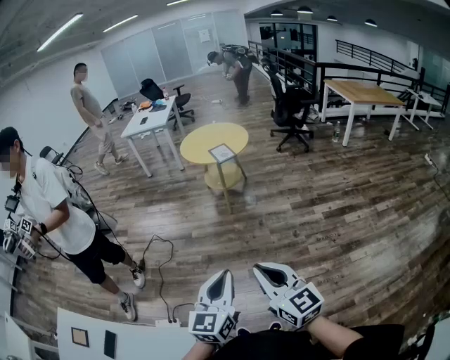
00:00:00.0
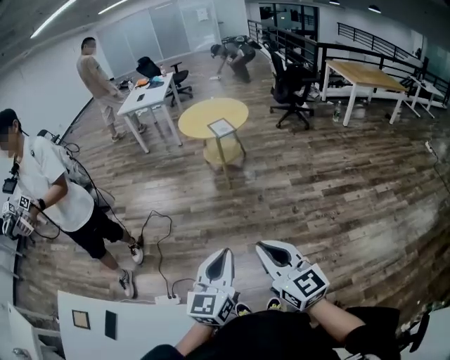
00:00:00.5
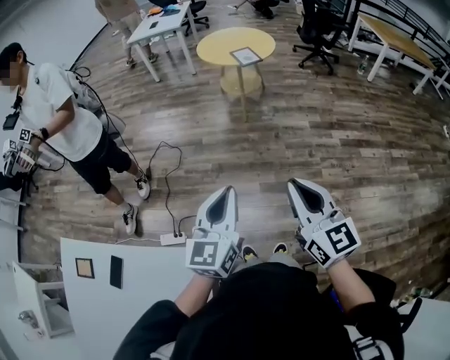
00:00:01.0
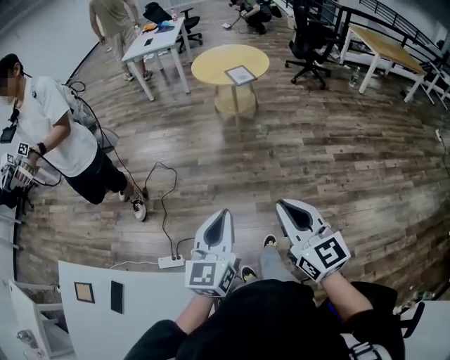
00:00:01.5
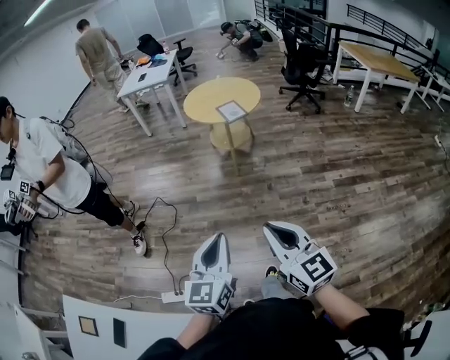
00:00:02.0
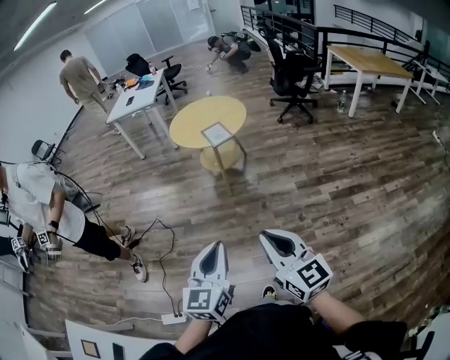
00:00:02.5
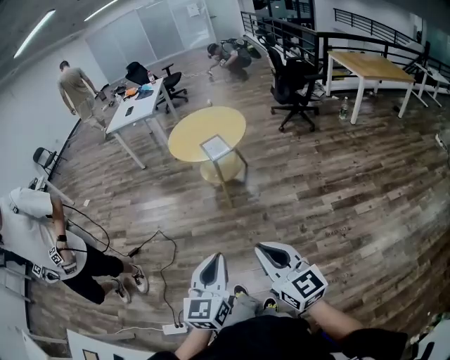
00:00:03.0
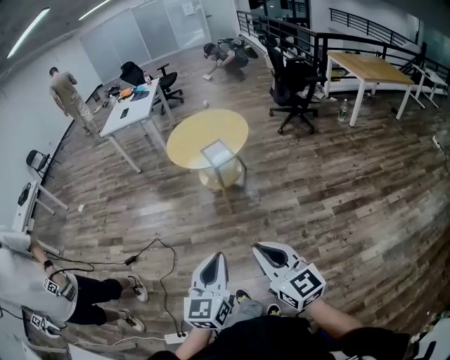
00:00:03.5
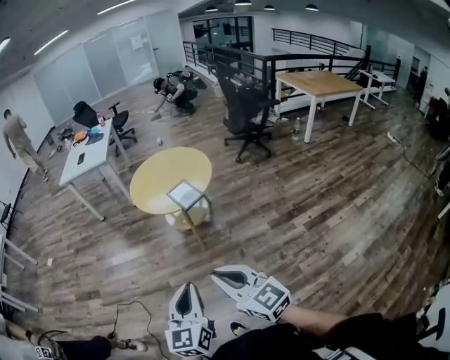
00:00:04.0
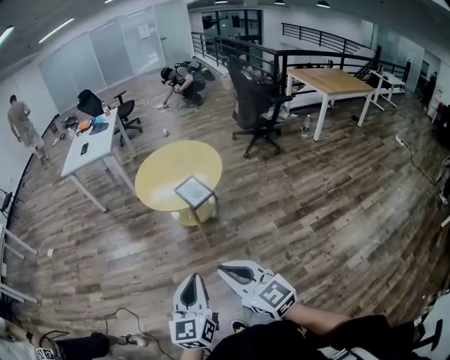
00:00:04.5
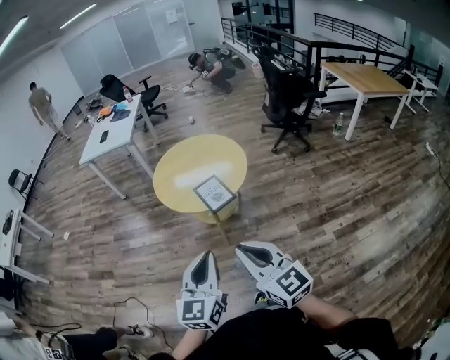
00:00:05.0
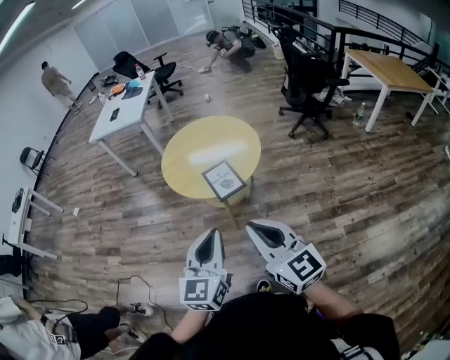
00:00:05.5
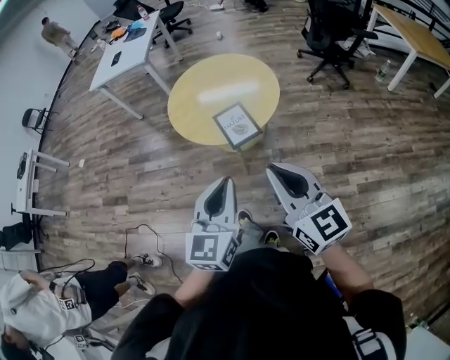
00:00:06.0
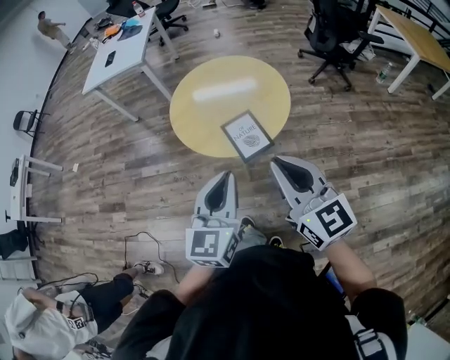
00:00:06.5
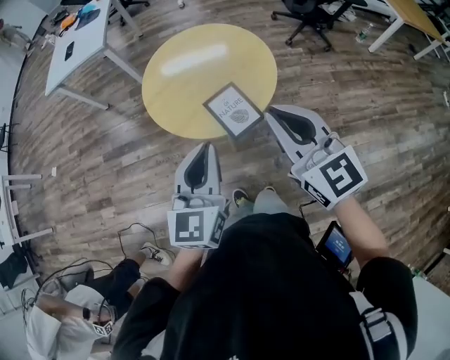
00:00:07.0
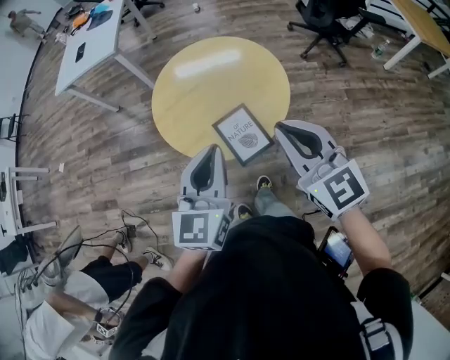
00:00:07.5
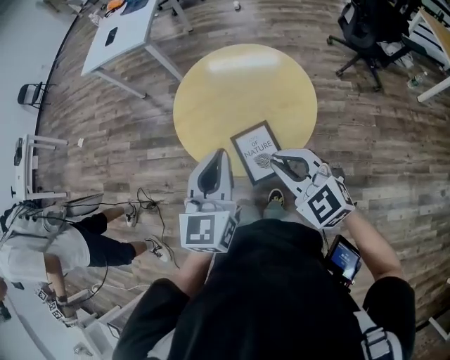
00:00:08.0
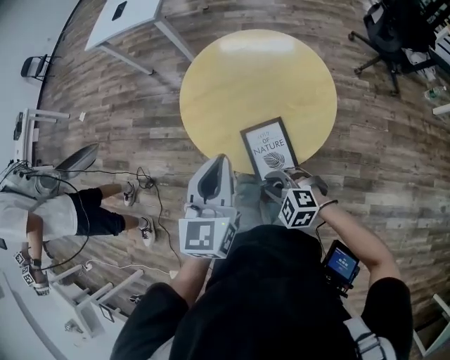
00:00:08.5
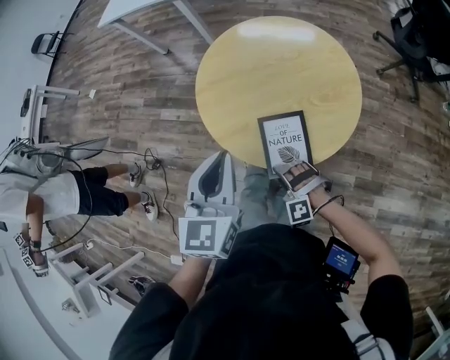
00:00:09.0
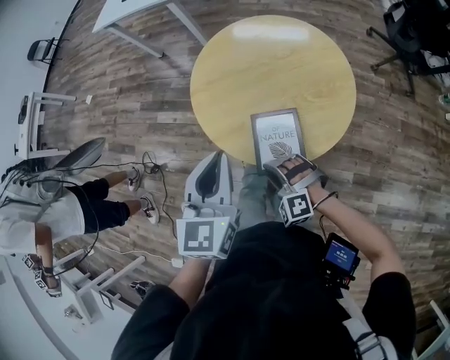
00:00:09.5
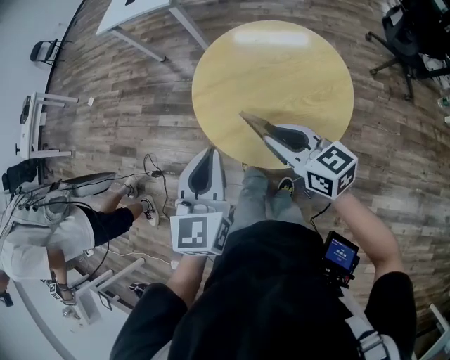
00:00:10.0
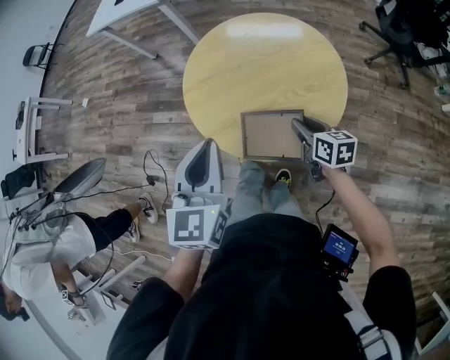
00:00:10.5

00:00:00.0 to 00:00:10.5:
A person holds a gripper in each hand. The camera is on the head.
00:00:00.0 to 00:00:02.0: The left gripper goes roughly 15 cm forward and to the left. The right gripper goes about 15 cm forward.
00:00:02.0 to 00:00:04.0: The two grippers go approximately 30 cm forward.
00:00:04.0 to 00:00:06.5: The two grippers travel together, forward, some 40 cm.
00:00:06.5 to 00:00:08.5: The left gripper changes place by some 25 cm; the right gripper goes approximately 35 cm downward, and tilts its fingers about 50 degrees downward.
00:00:08.5 to 00:00:10.5: The right gripper goes up and down, approximately 25 cm each way, reversing 2 times, rolls clockwise, seen from behind, by roughly 70 degrees, and opens, then closes once more.

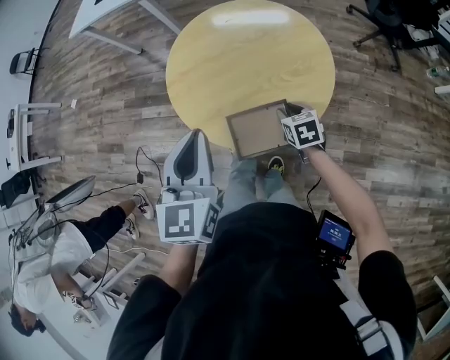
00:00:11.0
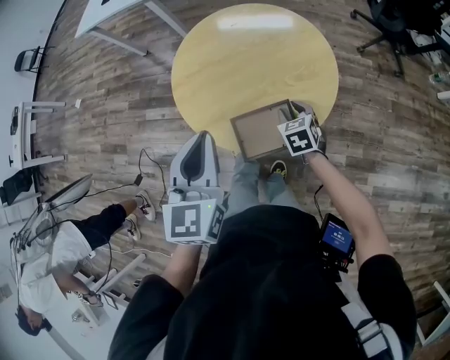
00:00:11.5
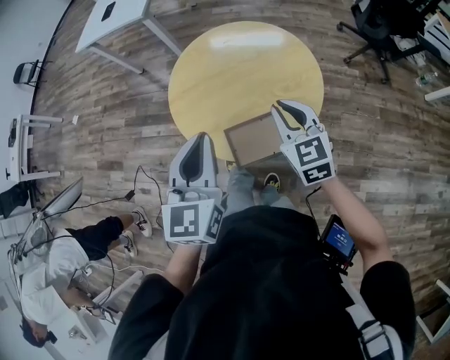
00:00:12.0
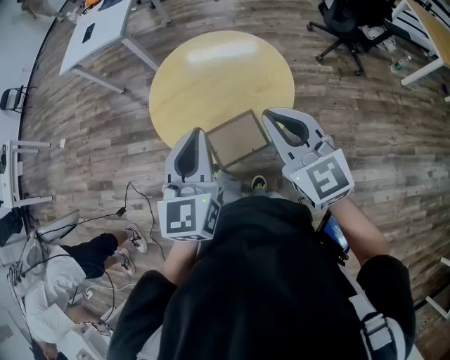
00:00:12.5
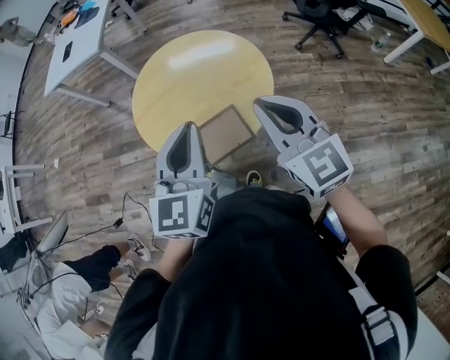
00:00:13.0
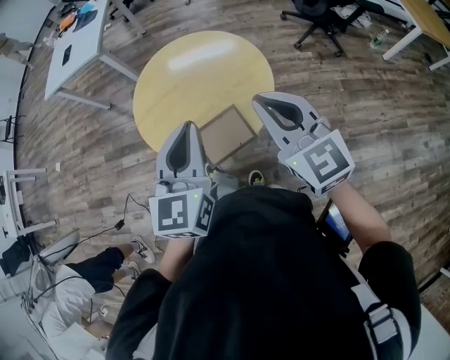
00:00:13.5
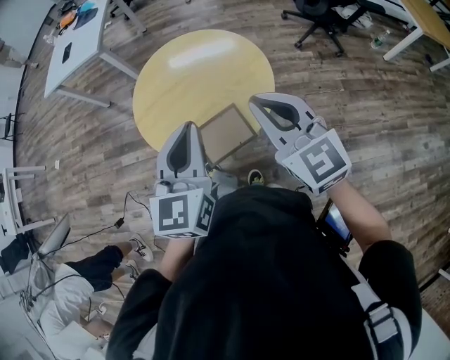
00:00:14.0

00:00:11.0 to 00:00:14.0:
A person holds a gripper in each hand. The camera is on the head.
00:00:11.0 to 00:00:12.5: The right gripper shifts about 35 cm upward, tilts its fingers some 40 degrees upward, and closes its fingers, while the left gripper moves upward and to the right, approximately 10 cm.
00:00:12.5 to 00:00:14.0: There are only small adjustments of the grippers.

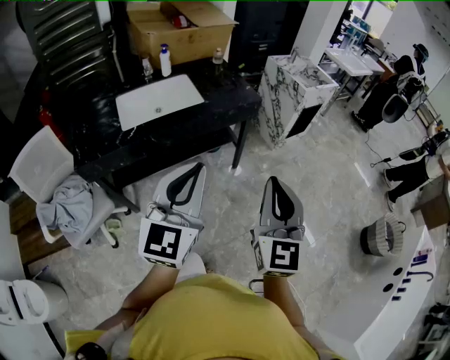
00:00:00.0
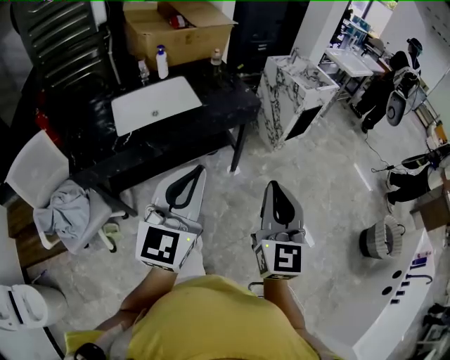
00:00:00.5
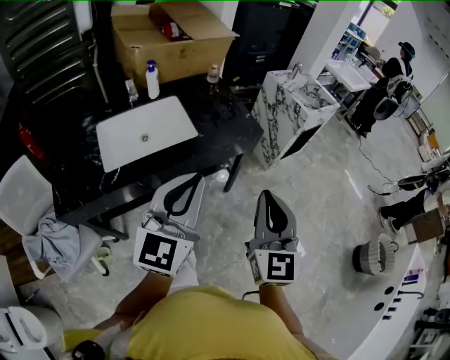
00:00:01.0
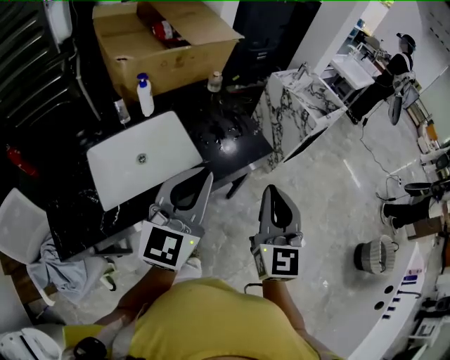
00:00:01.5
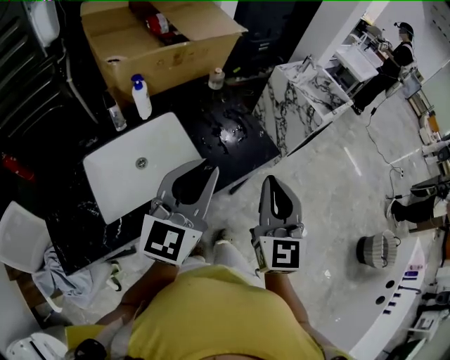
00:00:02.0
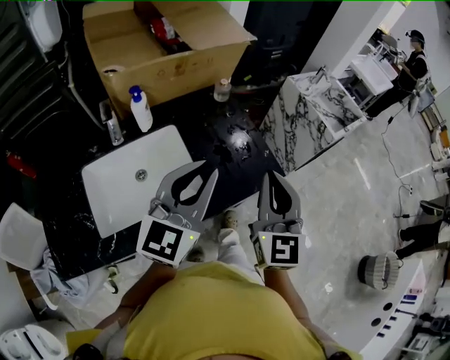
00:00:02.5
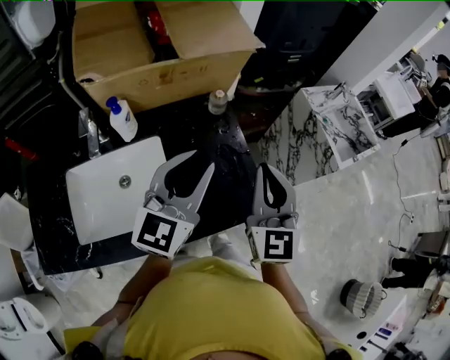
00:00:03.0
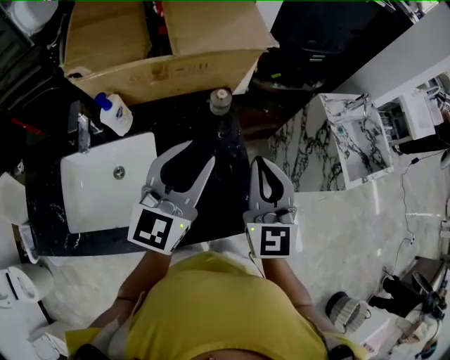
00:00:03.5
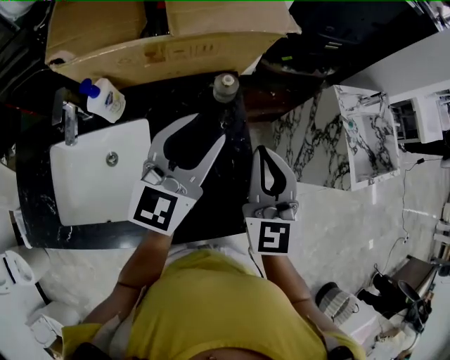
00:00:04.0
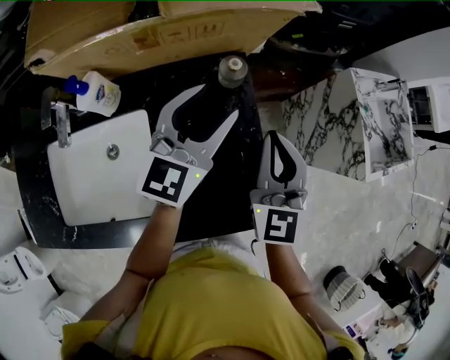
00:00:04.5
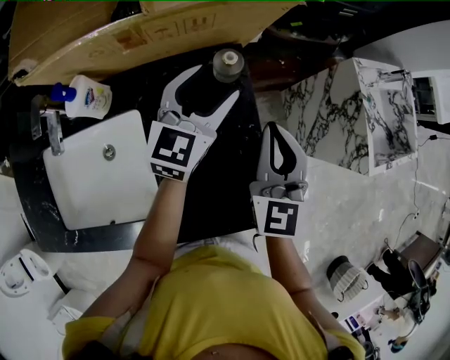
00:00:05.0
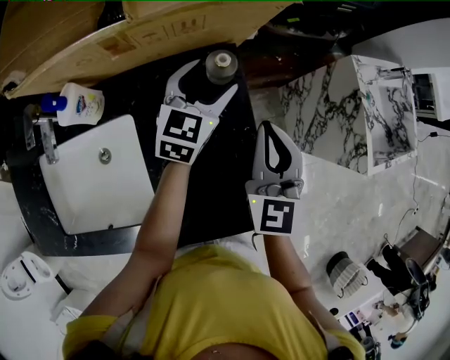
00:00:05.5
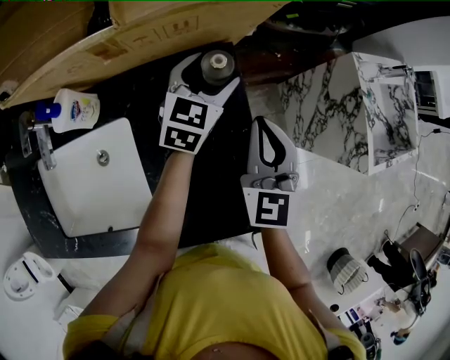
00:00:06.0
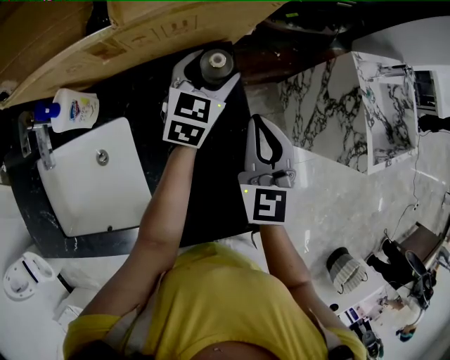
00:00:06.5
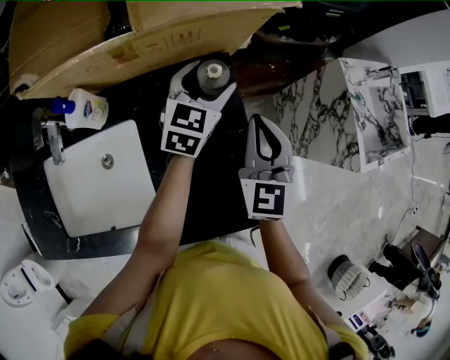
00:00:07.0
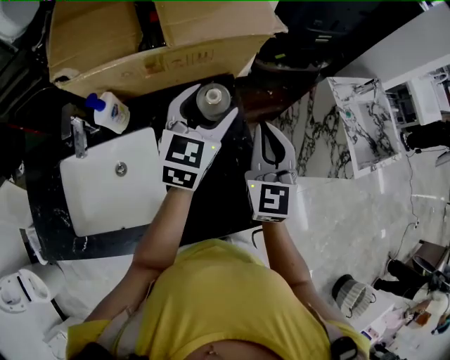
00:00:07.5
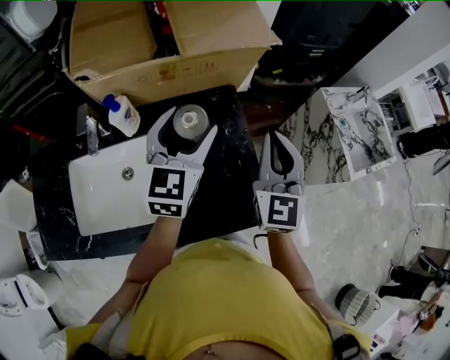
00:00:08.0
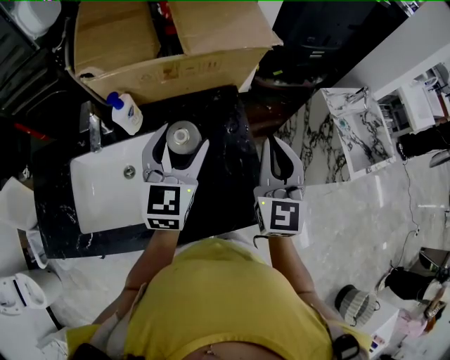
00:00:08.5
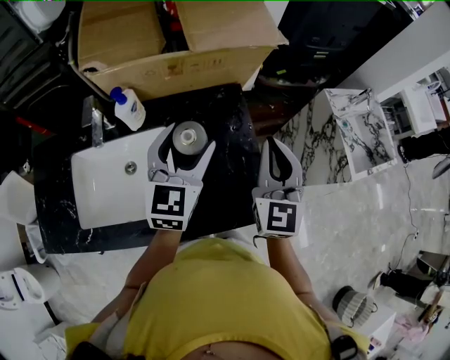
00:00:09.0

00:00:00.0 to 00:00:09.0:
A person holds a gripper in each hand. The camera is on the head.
00:00:00.0 to 00:00:02.0: Both grippers are carried forward, about 40 cm.
00:00:02.0 to 00:00:04.5: The pair of grippers is taken forward, about 40 cm. The right gripper turns by approximately 20 degrees. The left gripper changes its angle by some 20 degrees, and opens up.
00:00:04.5 to 00:00:07.0: The left gripper moves forward and downward, some 15 cm.
00:00:07.0 to 00:00:09.0: The left gripper heads backward, upward and to the left, covering about 25 cm, while the right gripper goes some 15 cm upward and backward.

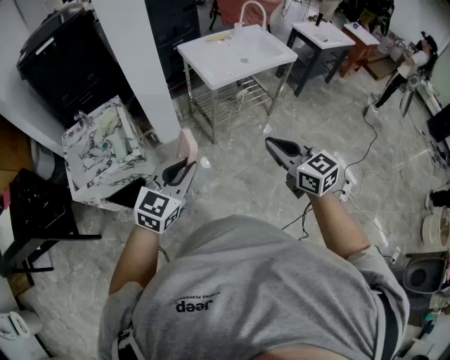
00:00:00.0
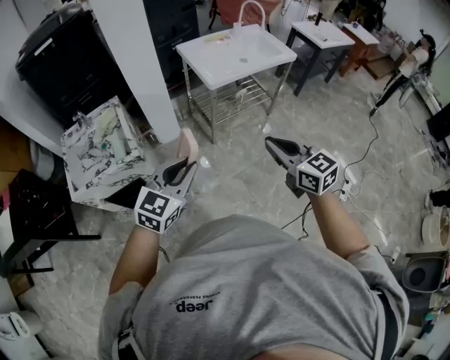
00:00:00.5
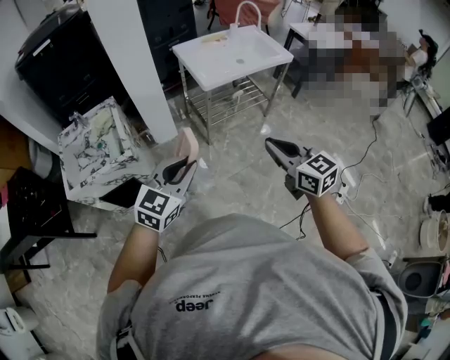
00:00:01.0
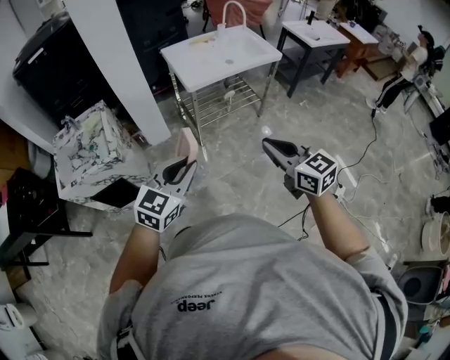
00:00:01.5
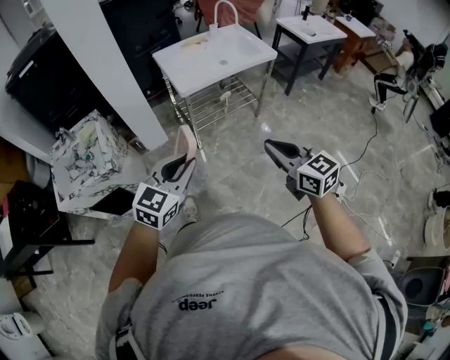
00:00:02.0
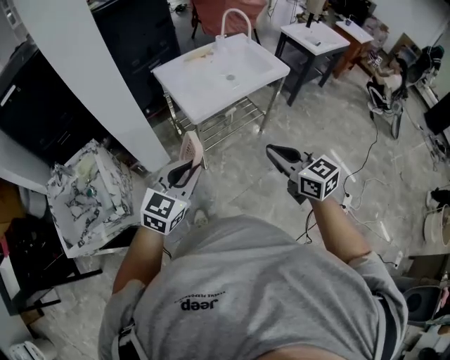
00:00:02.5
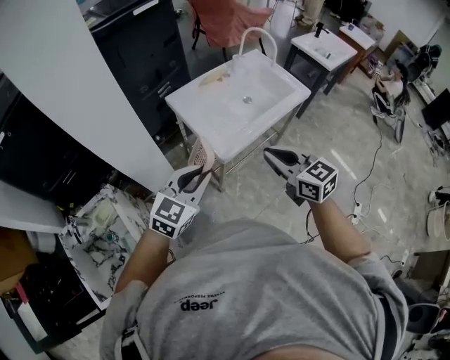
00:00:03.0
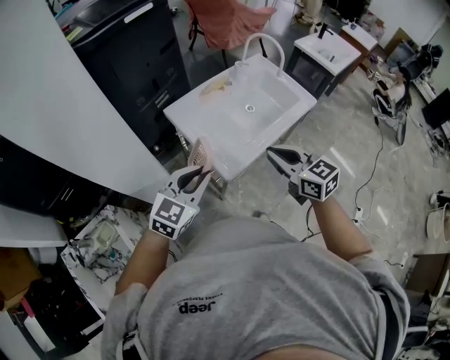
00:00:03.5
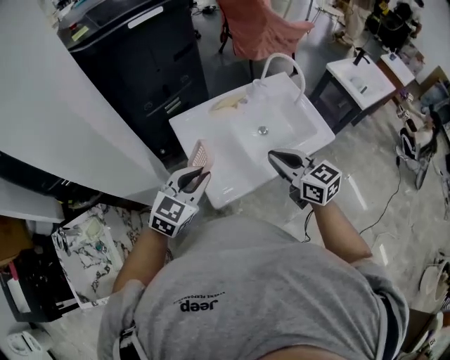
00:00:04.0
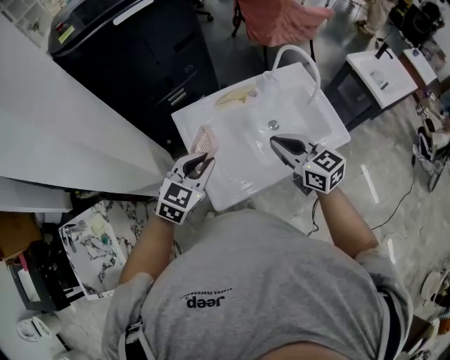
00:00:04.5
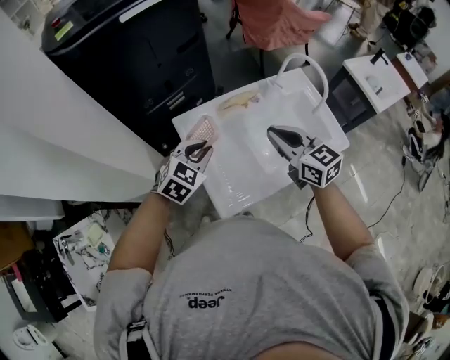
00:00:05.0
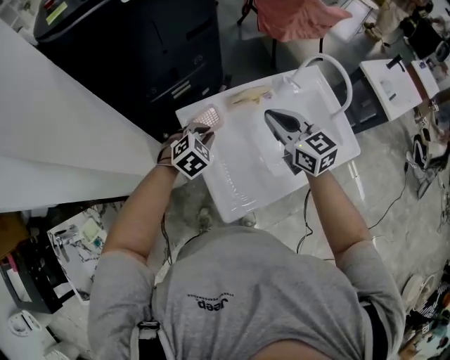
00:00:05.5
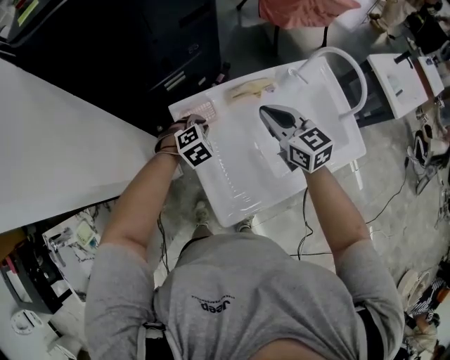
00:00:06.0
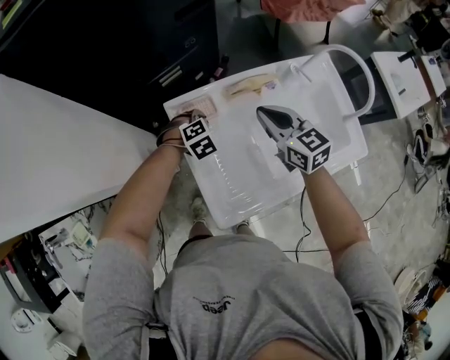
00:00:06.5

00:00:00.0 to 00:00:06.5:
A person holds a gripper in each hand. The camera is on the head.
00:00:00.0 to 00:00:02.0: Both grippers travel together to the right, about 15 cm.
00:00:02.0 to 00:00:04.5: The pair of grippers is taken forward, some 70 cm.
00:00:04.5 to 00:00:06.5: The right gripper heads forward and downward, covering approximately 20 cm. Meanwhile the left gripper travels downward and forward by roughly 35 cm, and angles its fingers downward, by approximately 40 degrees.
